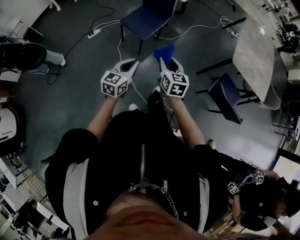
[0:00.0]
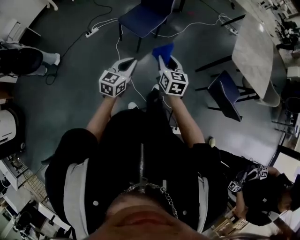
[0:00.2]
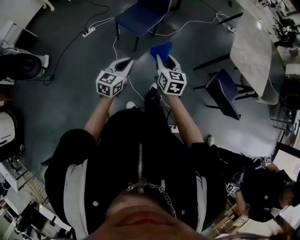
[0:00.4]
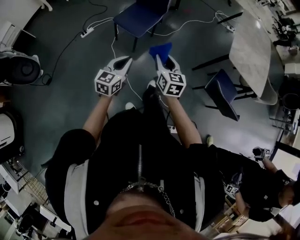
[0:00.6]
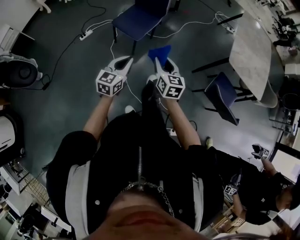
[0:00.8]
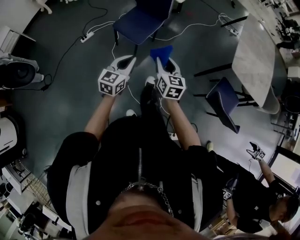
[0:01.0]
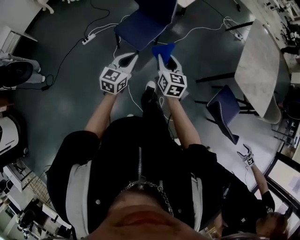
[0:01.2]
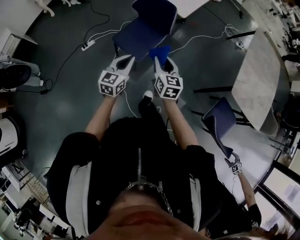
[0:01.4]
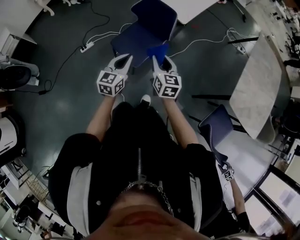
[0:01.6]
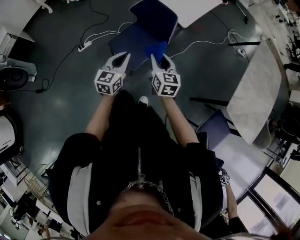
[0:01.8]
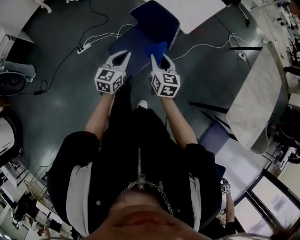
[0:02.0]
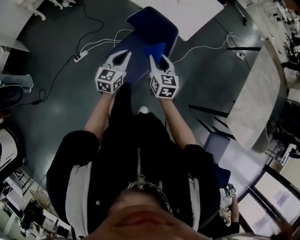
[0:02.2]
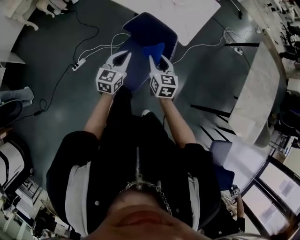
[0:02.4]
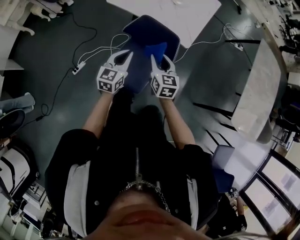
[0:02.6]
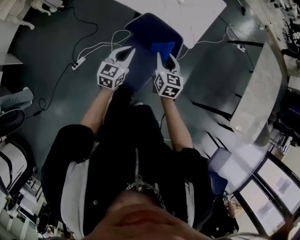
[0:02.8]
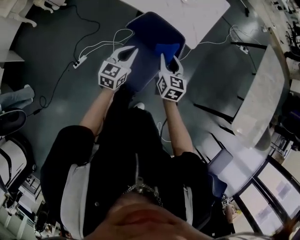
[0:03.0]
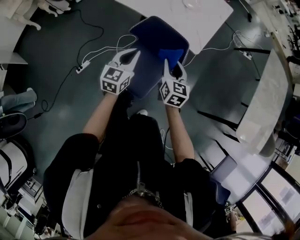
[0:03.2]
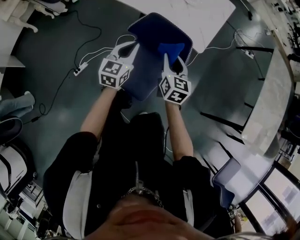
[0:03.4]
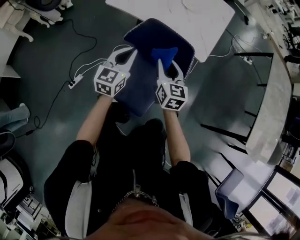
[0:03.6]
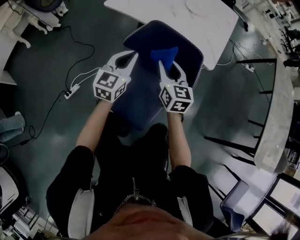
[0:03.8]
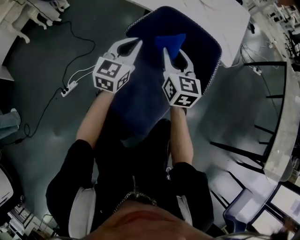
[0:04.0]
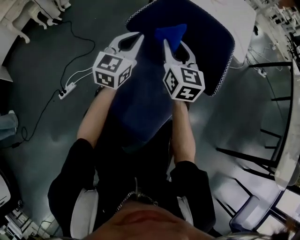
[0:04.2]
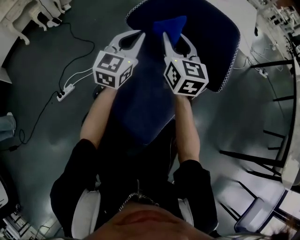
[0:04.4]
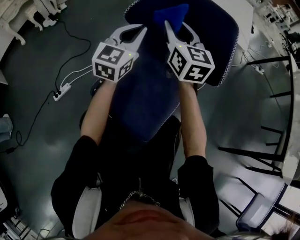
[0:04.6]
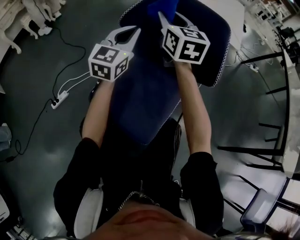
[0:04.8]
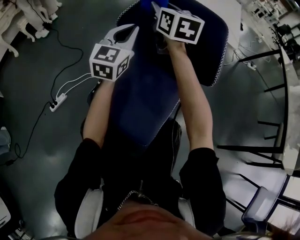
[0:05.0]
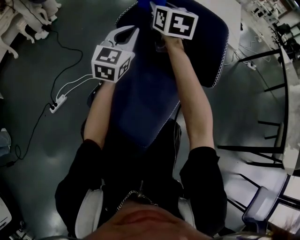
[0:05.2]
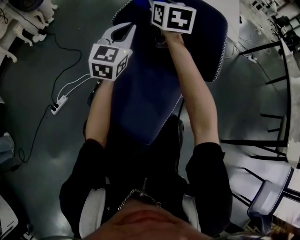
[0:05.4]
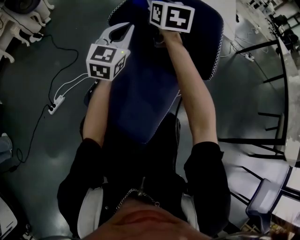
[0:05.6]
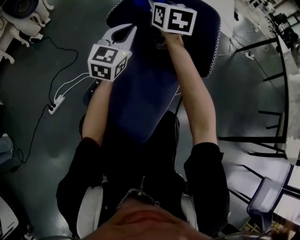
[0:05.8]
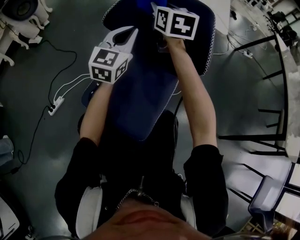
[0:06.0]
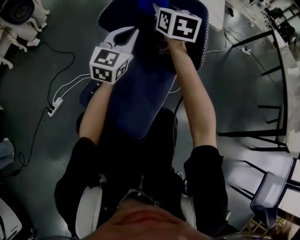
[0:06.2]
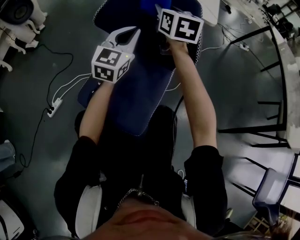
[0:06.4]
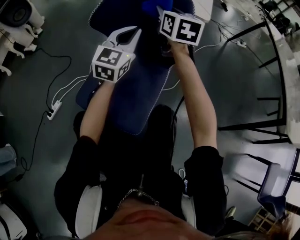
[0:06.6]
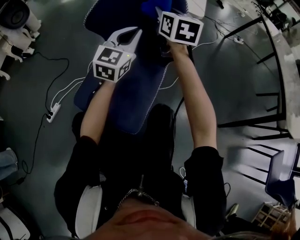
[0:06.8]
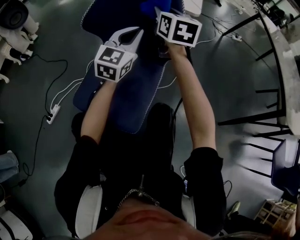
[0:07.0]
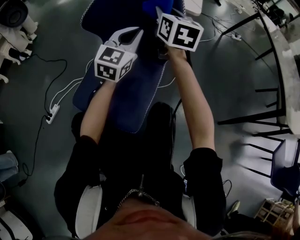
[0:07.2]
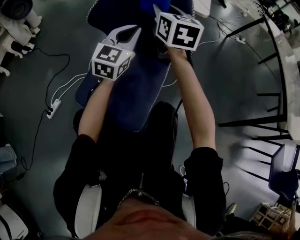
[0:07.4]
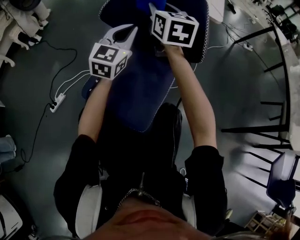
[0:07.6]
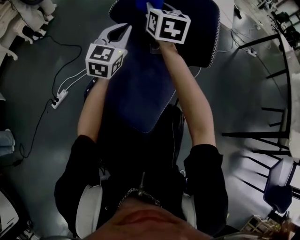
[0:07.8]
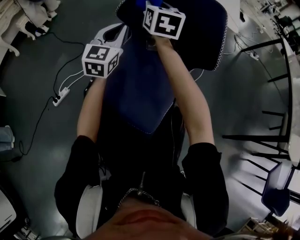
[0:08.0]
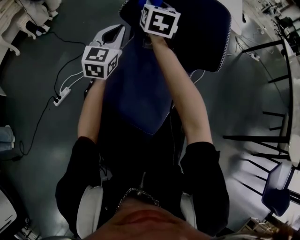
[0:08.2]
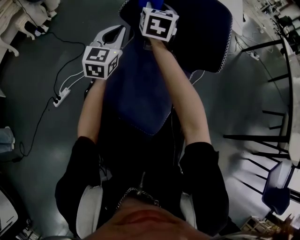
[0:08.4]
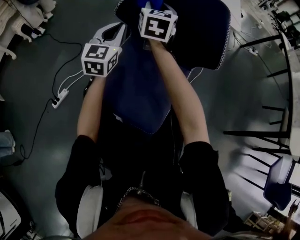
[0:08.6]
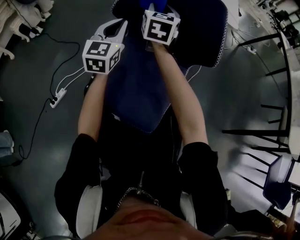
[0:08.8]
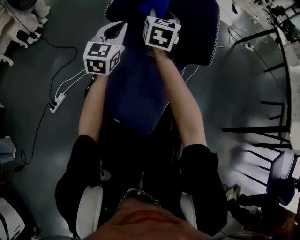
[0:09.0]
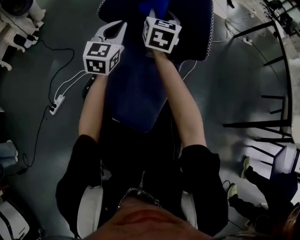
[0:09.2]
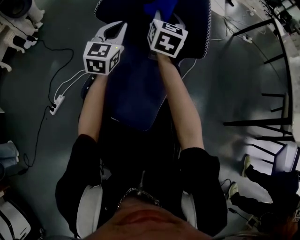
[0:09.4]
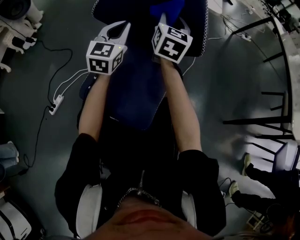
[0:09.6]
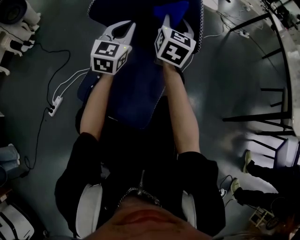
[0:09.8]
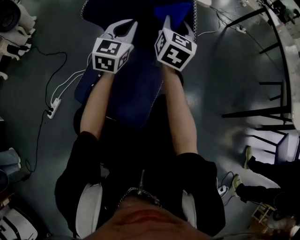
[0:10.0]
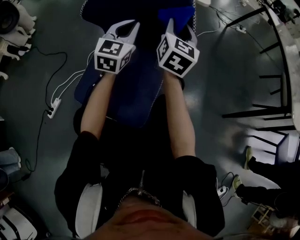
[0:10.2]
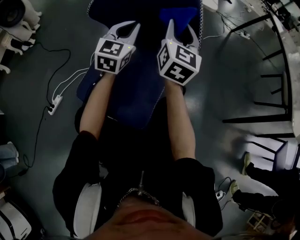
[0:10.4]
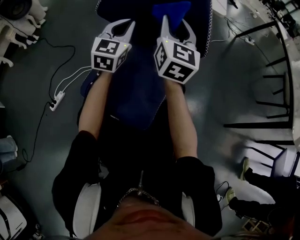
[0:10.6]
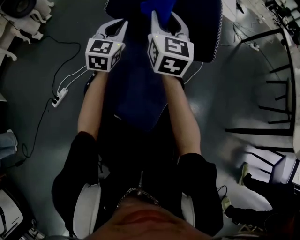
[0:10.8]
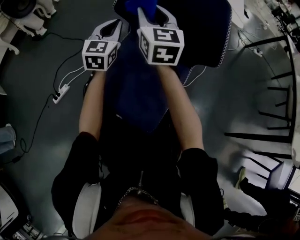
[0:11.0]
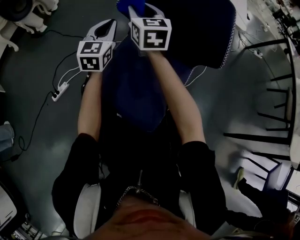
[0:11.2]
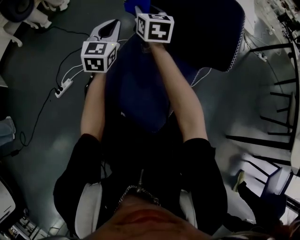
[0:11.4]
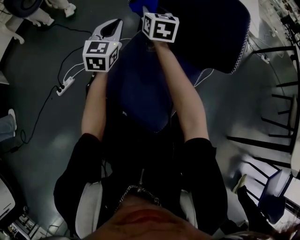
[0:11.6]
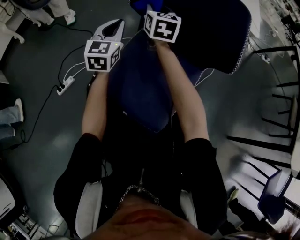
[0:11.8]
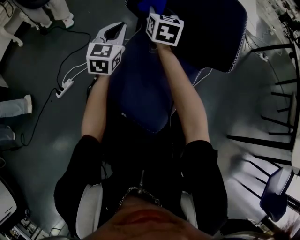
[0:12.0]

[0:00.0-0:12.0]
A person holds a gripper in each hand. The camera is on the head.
0:00.0 to 0:01.6: Both grippers travel together forward, about 35 cm.
0:01.6 to 0:03.0: The grippers both shift forward by some 30 cm.
0:03.0 to 0:04.4: Both grippers move downward and forward, approximately 30 cm. The left gripper rotates about 20 degrees. The right gripper swivels approximately 20 degrees.
0:04.4 to 0:06.0: The right gripper travels forward by some 10 cm. The left gripper travels to the right by some 5 cm.
0:06.0 to 0:07.6: The right gripper moves backward, approximately 5 cm, and moves approximately 15 cm to the right and comes back. The left gripper travels to the right and back again, approximately 10 cm each way.
0:07.6 to 0:09.0: The right gripper is displaced downward by roughly 5 cm, and moves approximately 10 cm to the left and comes back. The left gripper moves to the left, roughly 10 cm.
0:09.0 to 0:10.4: The left gripper is displaced to the right by approximately 10 cm. The right gripper moves to the right and backward, approximately 15 cm.
0:10.4 to 0:12.0: The left gripper shifts by approximately 20 cm. Meanwhile the right gripper moves some 25 cm, and turns by roughly 30 degrees.

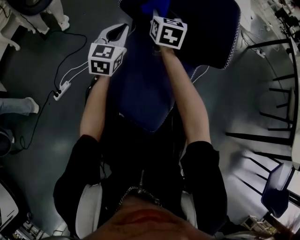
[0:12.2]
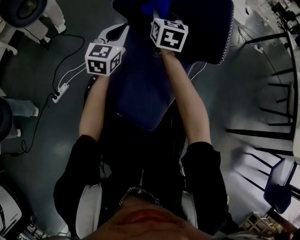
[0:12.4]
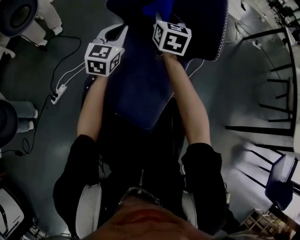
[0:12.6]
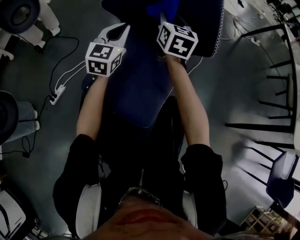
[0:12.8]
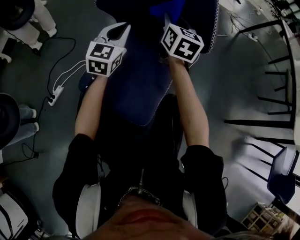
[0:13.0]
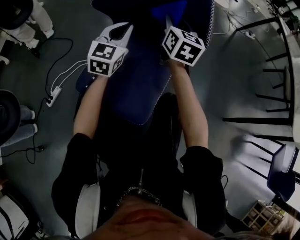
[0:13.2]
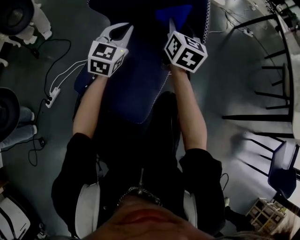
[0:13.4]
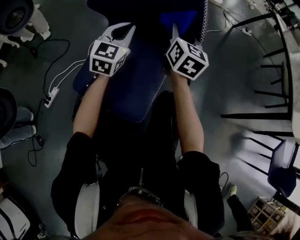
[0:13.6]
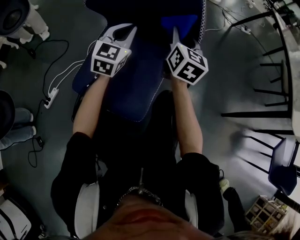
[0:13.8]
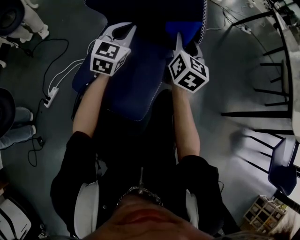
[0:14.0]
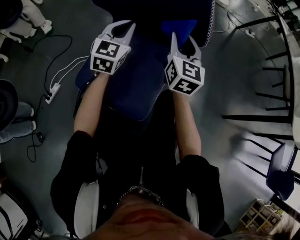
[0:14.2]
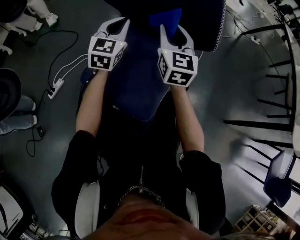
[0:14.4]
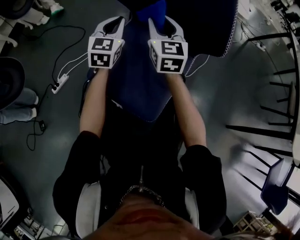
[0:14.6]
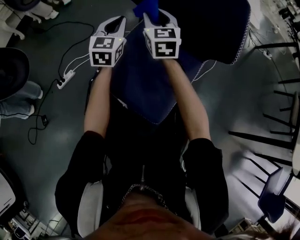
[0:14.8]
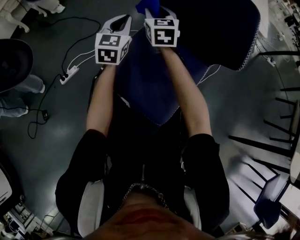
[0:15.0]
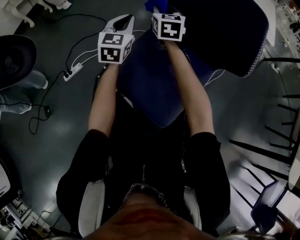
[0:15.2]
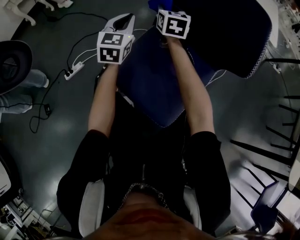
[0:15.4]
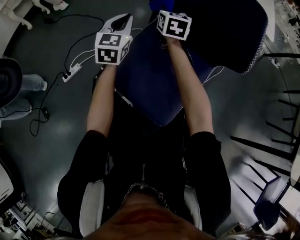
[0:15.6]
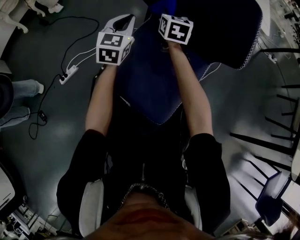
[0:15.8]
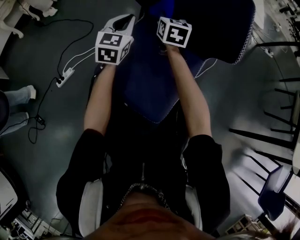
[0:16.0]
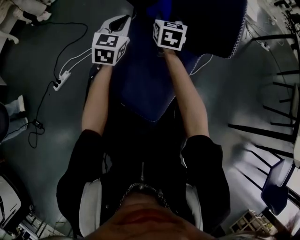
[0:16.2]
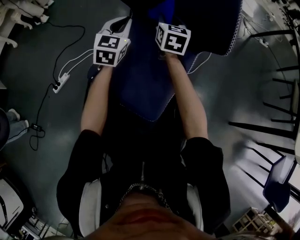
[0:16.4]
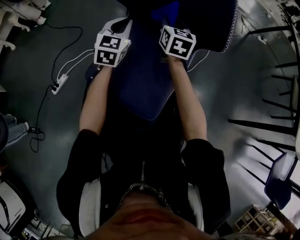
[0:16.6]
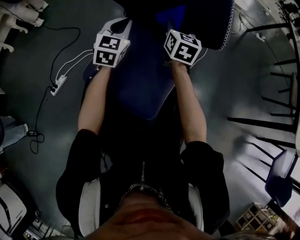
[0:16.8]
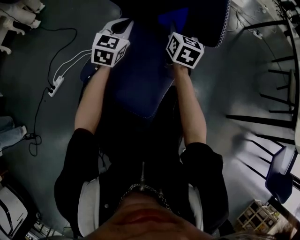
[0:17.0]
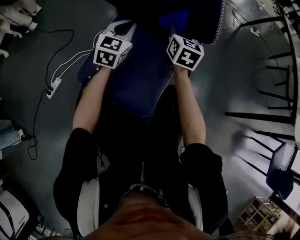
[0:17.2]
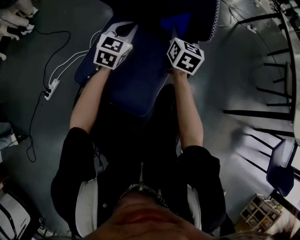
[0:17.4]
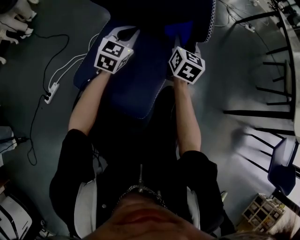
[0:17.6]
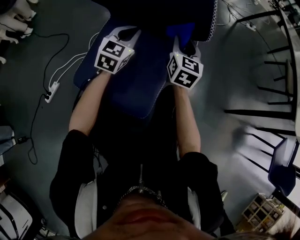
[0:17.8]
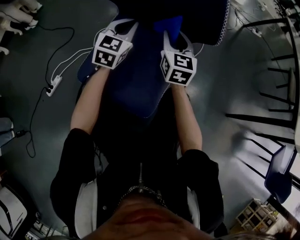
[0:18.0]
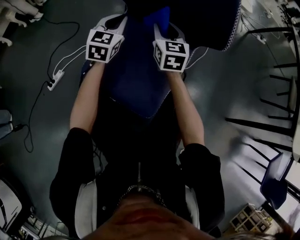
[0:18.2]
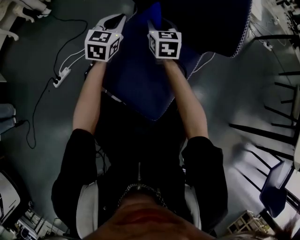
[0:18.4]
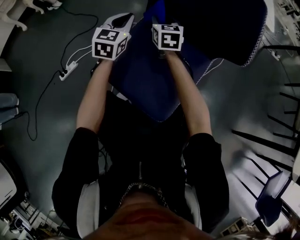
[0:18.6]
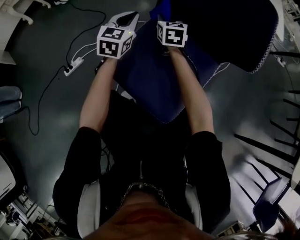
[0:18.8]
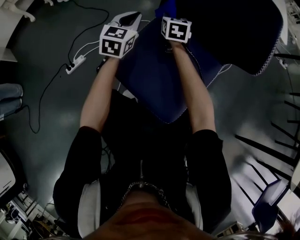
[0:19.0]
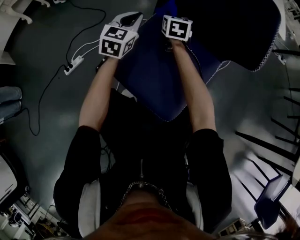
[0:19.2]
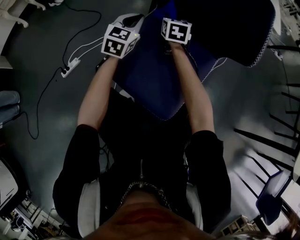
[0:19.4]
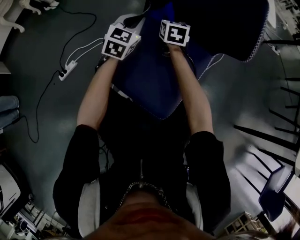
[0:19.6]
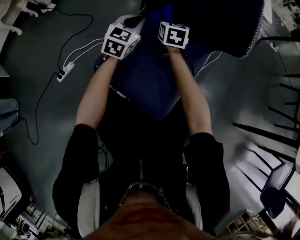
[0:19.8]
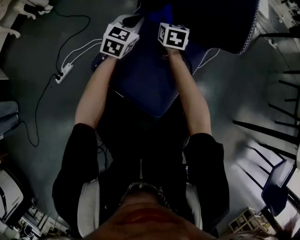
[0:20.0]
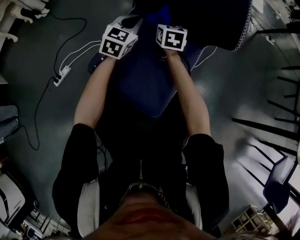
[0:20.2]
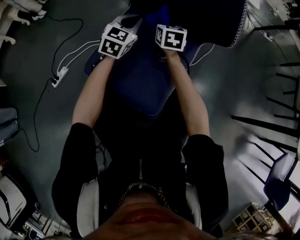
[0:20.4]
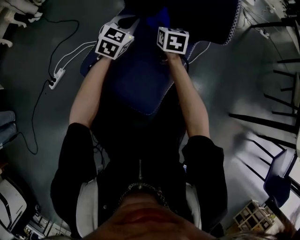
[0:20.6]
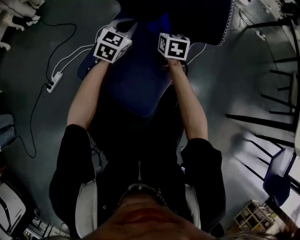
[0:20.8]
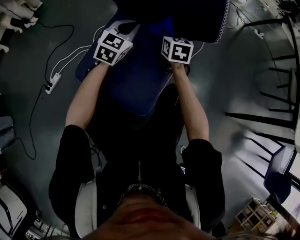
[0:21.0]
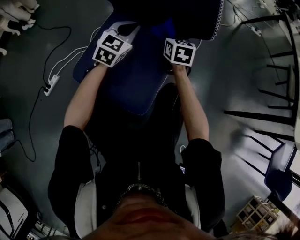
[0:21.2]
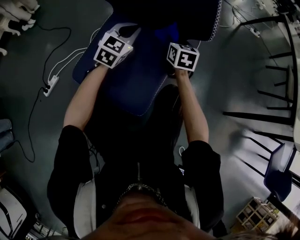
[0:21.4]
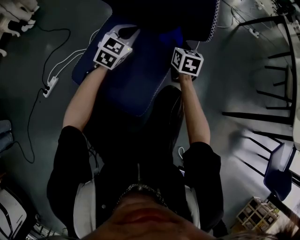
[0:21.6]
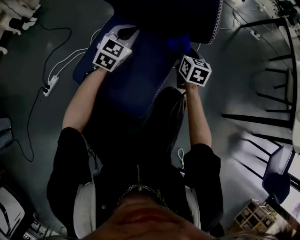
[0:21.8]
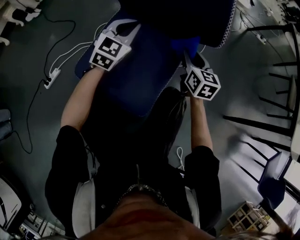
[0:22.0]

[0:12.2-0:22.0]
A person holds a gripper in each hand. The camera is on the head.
0:12.2 to 0:13.6: The left gripper shifts about 15 cm to the right. Meanwhile the right gripper travels to the right and backward by about 20 cm.
0:13.6 to 0:15.0: The right gripper changes place by about 30 cm, and swivels approximately 30 degrees. The left gripper ends up about 20 cm from where it was, and rotates approximately 30 degrees.
0:15.0 to 0:16.4: The right gripper is displaced to the right by approximately 15 cm, and changes its angle by about 20 degrees, while the left gripper heads to the right, covering about 10 cm.
0:16.4 to 0:17.8: The right gripper travels to the right and backward by roughly 20 cm. Meanwhile the left gripper heads to the right, covering approximately 15 cm.
0:17.8 to 0:19.2: The right gripper ends up approximately 30 cm from where it was, and turns by about 30 degrees. The left gripper shifts by approximately 20 cm, and turns by about 20 degrees.
0:19.2 to 0:20.6: The left gripper heads to the right, covering roughly 15 cm. Meanwhile the right gripper heads to the right and backward, covering some 15 cm.
0:20.6 to 0:22.0: The right gripper moves to the right and backward, roughly 15 cm; the left gripper changes place by about 5 cm.

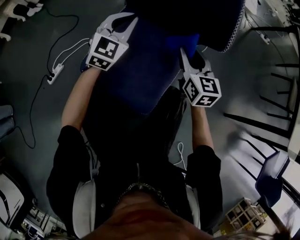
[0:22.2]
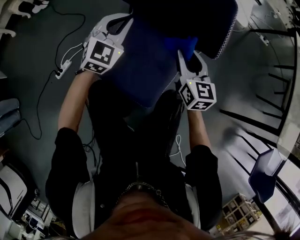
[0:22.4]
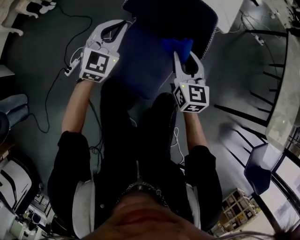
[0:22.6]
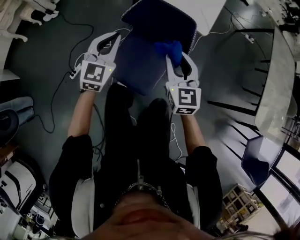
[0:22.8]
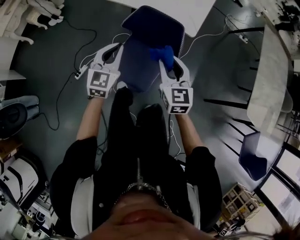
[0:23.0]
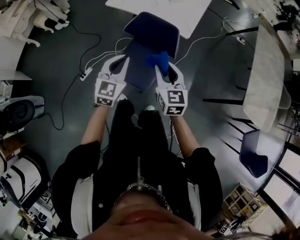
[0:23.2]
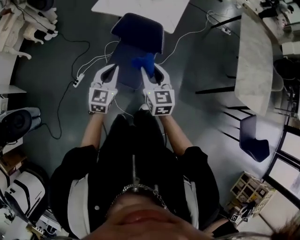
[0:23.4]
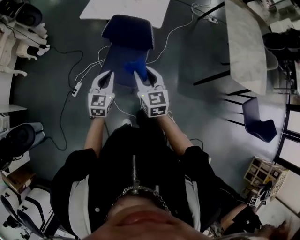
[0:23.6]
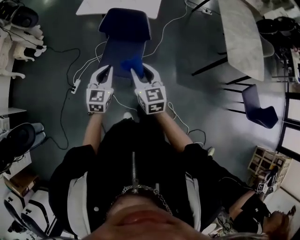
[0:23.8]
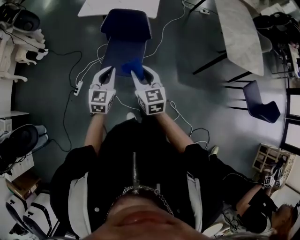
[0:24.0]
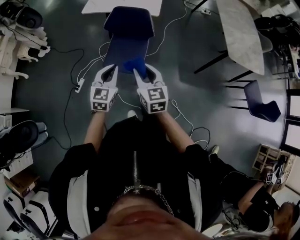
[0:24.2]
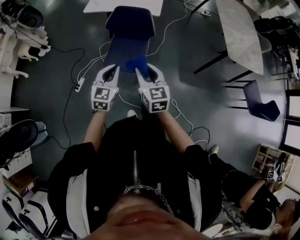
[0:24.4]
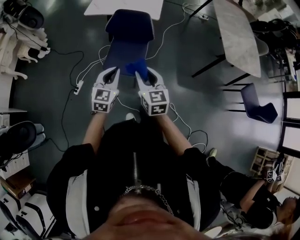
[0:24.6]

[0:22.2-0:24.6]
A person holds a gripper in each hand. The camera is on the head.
0:22.2 to 0:23.4: Both grippers travel together upward and backward, some 50 cm.
0:23.4 to 0:24.6: Both grippers move backward, approximately 20 cm.
